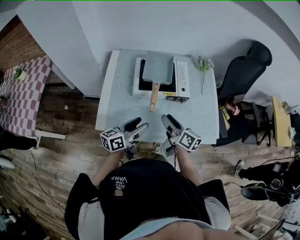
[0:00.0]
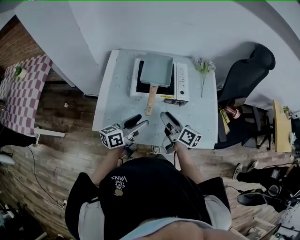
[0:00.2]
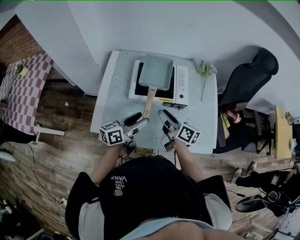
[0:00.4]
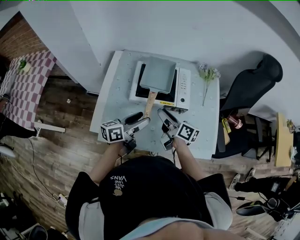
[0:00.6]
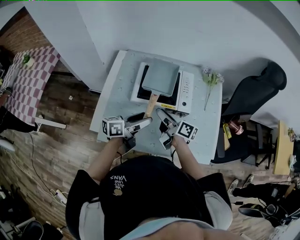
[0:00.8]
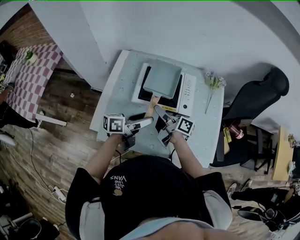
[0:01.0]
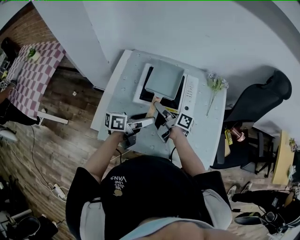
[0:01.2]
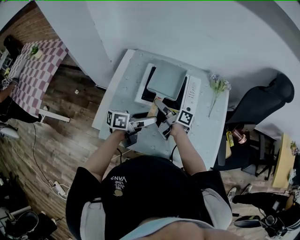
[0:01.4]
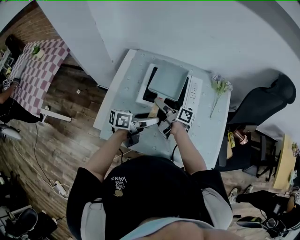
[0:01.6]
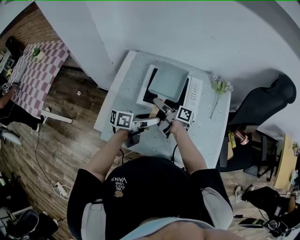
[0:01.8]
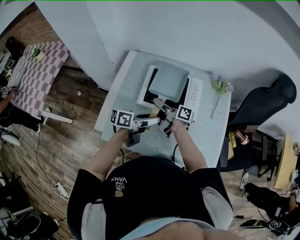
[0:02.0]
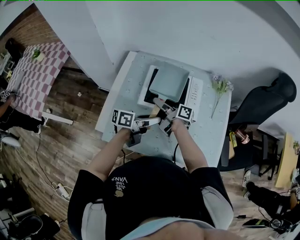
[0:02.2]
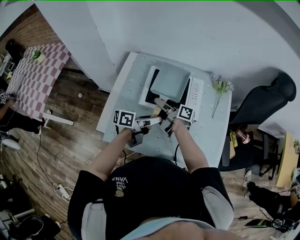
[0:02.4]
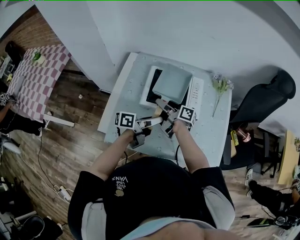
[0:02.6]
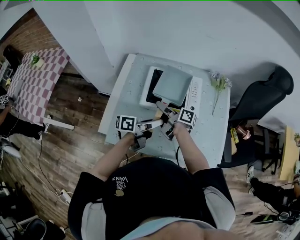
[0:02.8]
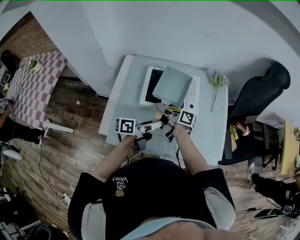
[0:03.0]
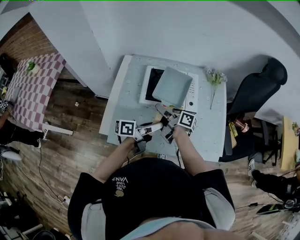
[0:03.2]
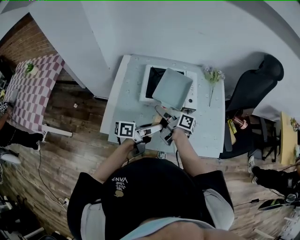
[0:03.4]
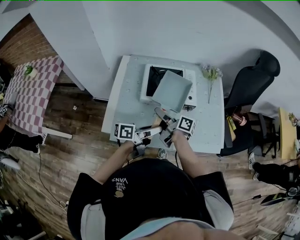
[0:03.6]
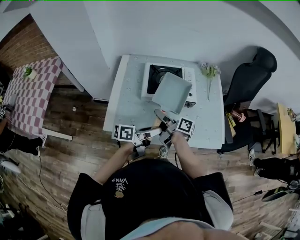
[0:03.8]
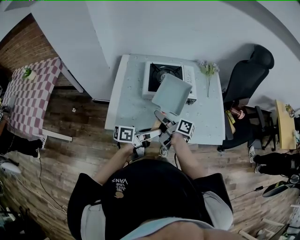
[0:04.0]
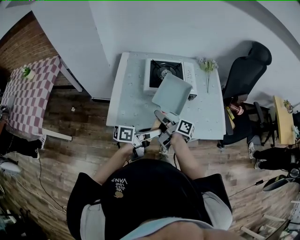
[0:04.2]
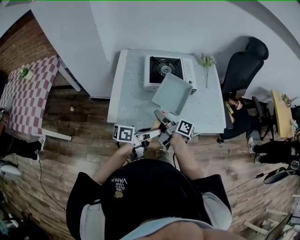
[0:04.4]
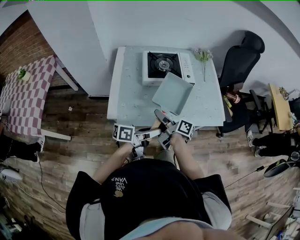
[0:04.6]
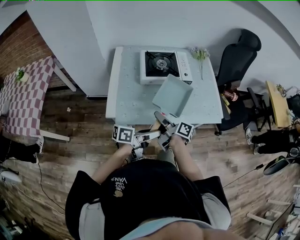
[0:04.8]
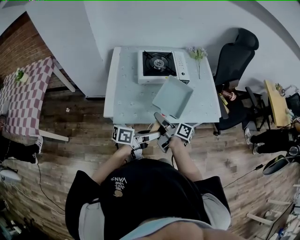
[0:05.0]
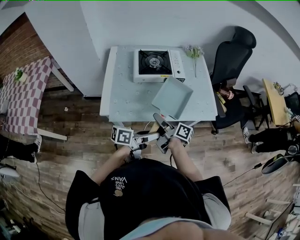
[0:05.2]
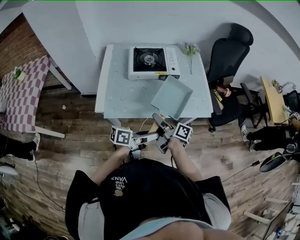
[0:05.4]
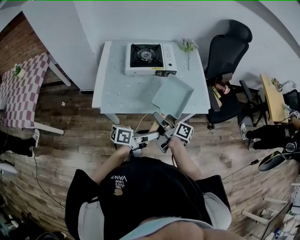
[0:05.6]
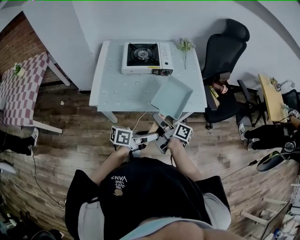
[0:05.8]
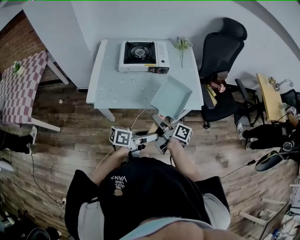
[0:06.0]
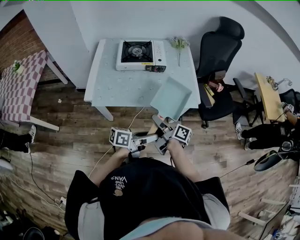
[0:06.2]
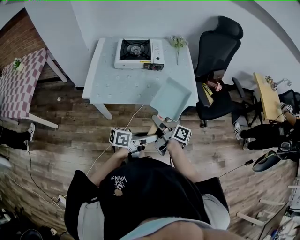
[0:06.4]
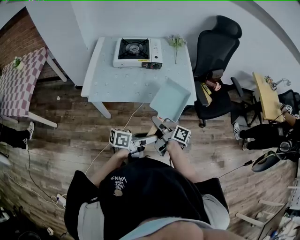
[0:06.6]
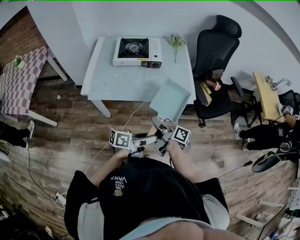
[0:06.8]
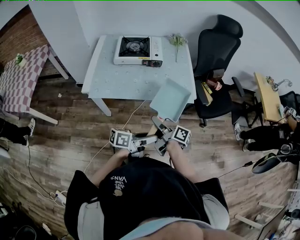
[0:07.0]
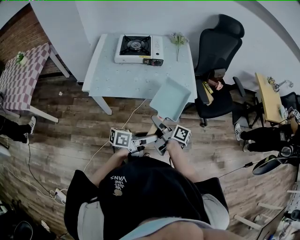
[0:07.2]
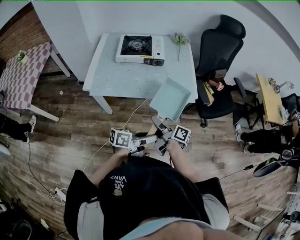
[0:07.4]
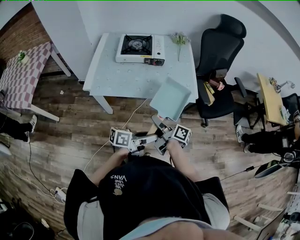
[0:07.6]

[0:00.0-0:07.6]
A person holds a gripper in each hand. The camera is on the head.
0:00.0 to 0:01.6: The left gripper shifts some 10 cm forward and to the right, while the right gripper travels forward and to the left by roughly 15 cm, and rotates approximately 40 degrees.
0:01.6 to 0:03.0: The left gripper closes up.
0:03.0 to 0:04.6: The grippers both shift backward by some 20 cm.
0:04.6 to 0:06.0: Both grippers move to the right and backward, some 20 cm.
0:06.0 to 0:07.6: The two grippers go about 5 cm to the right.

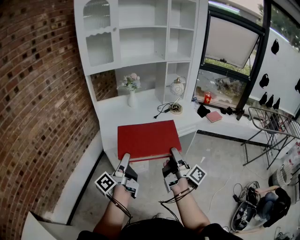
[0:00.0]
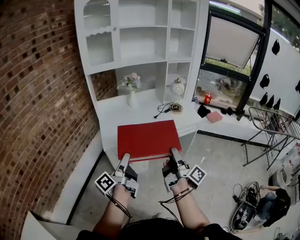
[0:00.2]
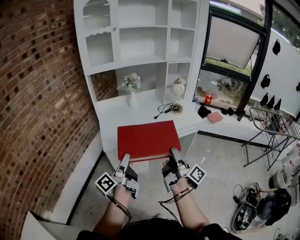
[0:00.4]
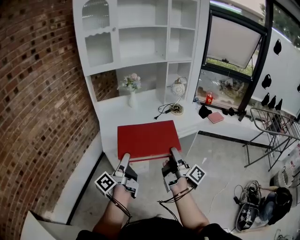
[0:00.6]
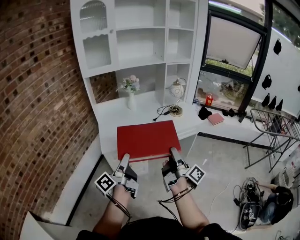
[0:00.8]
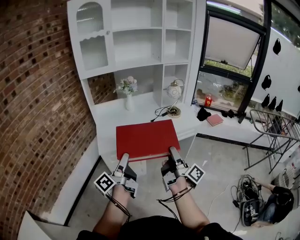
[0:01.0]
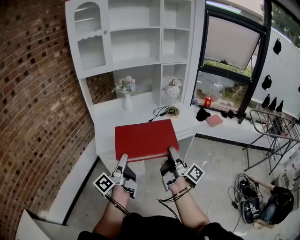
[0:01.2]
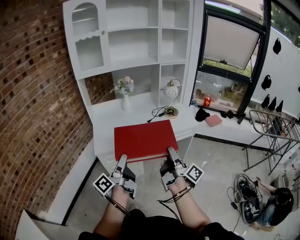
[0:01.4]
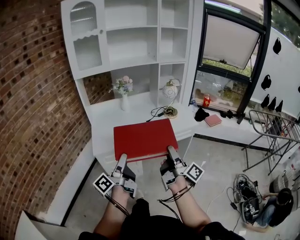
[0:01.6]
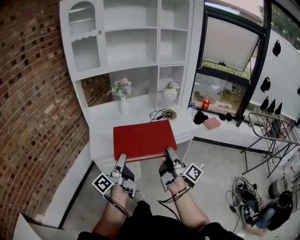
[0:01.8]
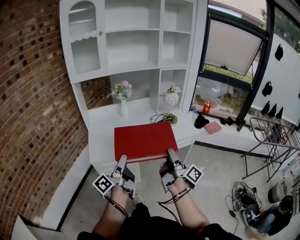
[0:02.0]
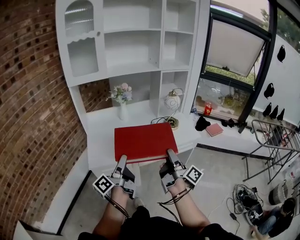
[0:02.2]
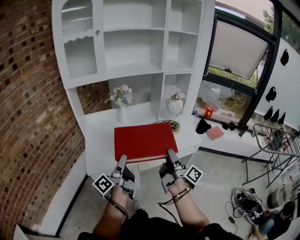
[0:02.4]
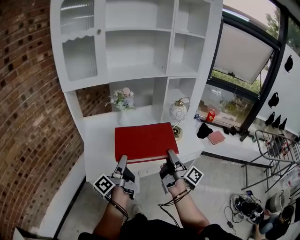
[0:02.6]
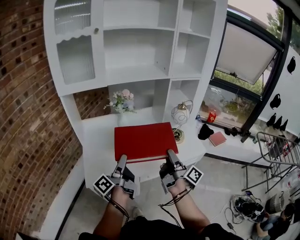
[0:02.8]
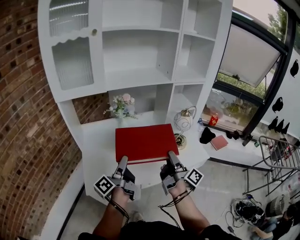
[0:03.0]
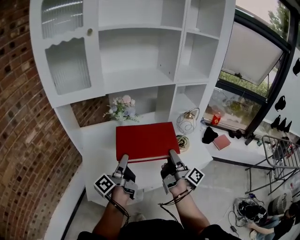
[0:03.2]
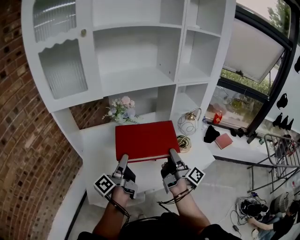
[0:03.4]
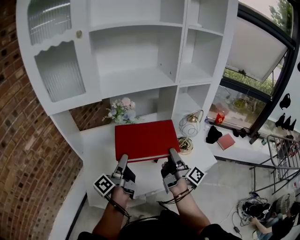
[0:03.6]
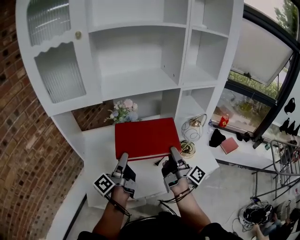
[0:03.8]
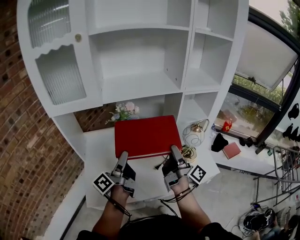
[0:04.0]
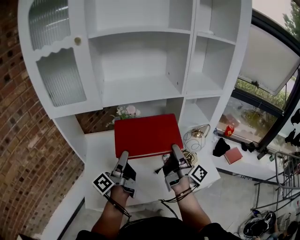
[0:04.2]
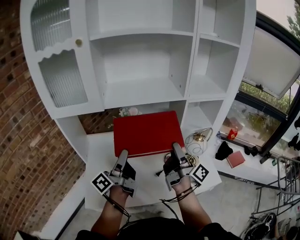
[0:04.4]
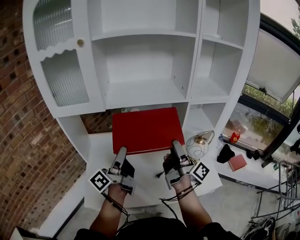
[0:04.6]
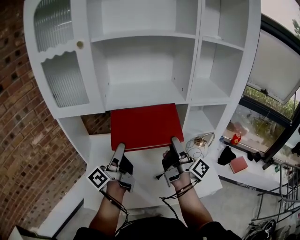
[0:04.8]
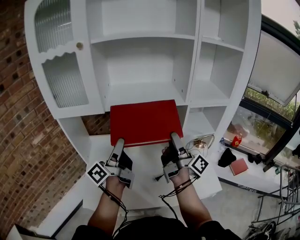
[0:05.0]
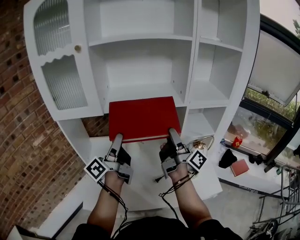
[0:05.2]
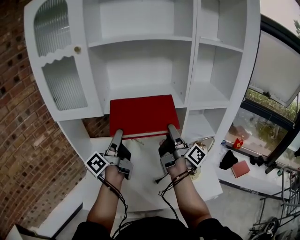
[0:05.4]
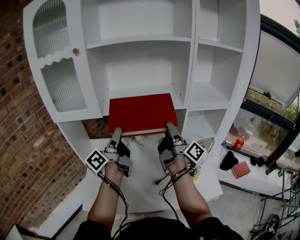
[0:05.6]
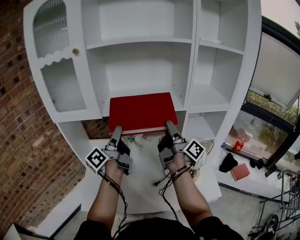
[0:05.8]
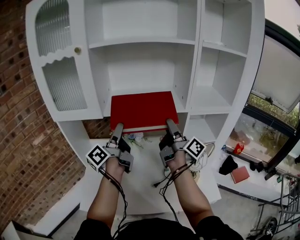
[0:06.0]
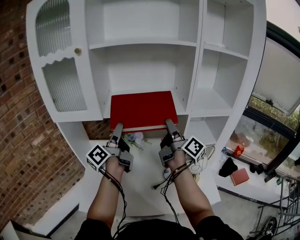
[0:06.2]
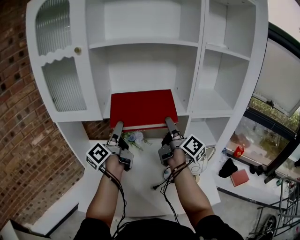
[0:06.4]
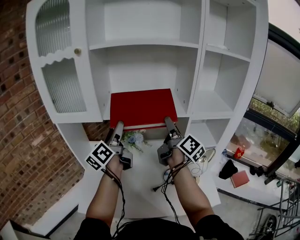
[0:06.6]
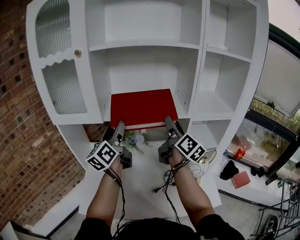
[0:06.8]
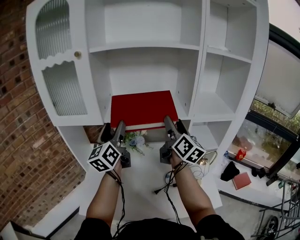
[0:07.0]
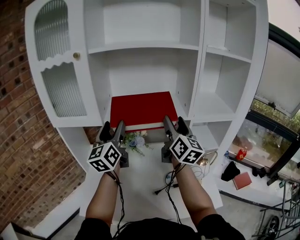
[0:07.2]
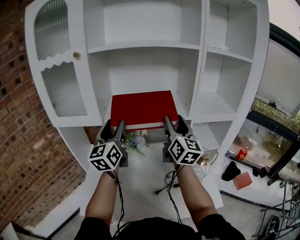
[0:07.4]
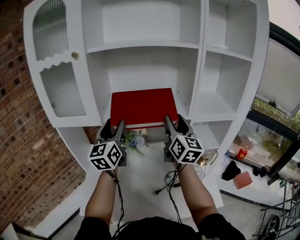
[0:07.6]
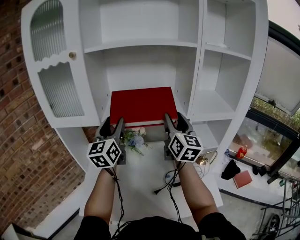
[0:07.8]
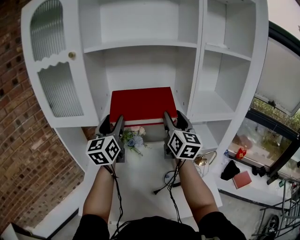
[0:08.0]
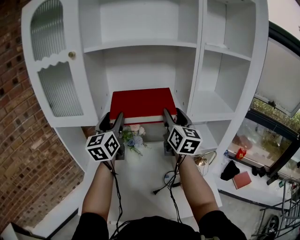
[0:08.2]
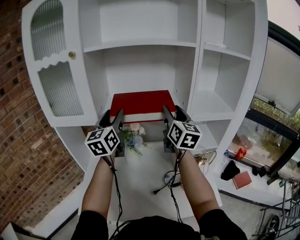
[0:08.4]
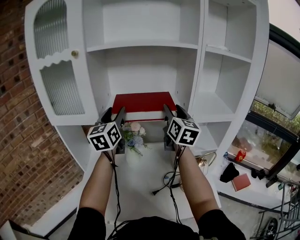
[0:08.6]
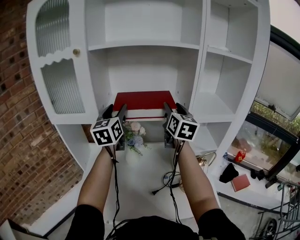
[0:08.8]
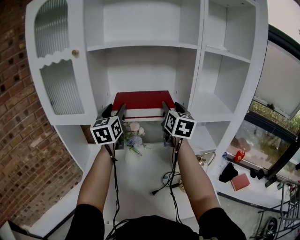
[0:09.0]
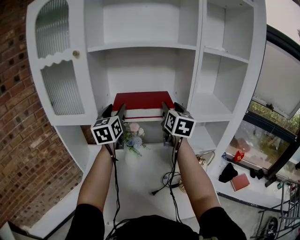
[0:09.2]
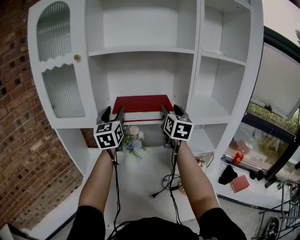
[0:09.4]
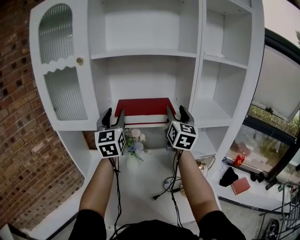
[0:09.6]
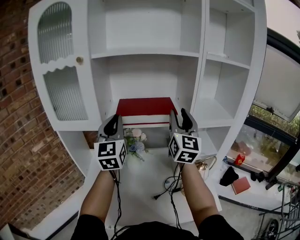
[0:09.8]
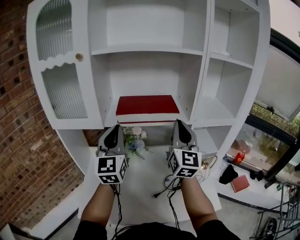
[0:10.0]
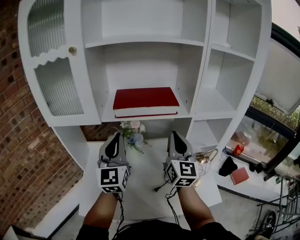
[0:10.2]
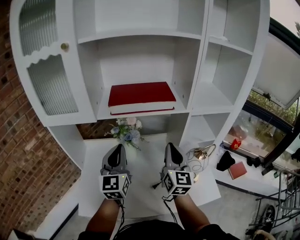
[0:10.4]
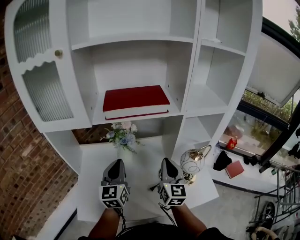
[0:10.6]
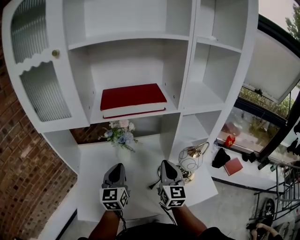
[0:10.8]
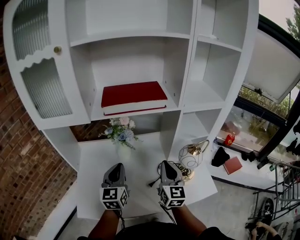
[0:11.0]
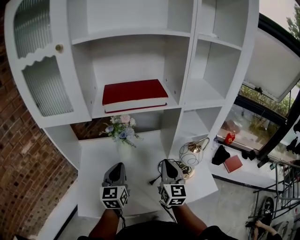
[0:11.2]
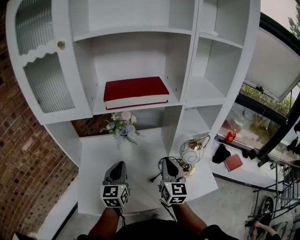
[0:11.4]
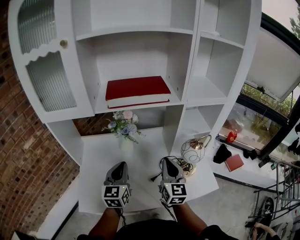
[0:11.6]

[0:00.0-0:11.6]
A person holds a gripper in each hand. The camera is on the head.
0:00.0 to 0:01.4: The left gripper goes approximately 10 cm to the right, while the right gripper is displaced to the right and forward by some 10 cm.
0:01.4 to 0:02.8: Both grippers travel together forward, approximately 30 cm.
0:02.8 to 0:04.4: The two grippers go roughly 20 cm forward.
0:04.4 to 0:05.8: The grippers both shift forward and upward by approximately 15 cm.
0:05.8 to 0:07.2: The left gripper changes place by approximately 5 cm, and twists about 50 degrees clockwise, seen from behind. Meanwhile the right gripper shifts approximately 5 cm upward, and rotates around the line of its fingers by some 60 degrees, counterclockwise from behind.
0:07.2 to 0:08.8: Both grippers travel together forward, about 5 cm.
0:08.8 to 0:10.2: The left gripper is displaced backward by approximately 10 cm, and closes; the right gripper travels backward and downward by some 15 cm, and closes its fingers.
0:10.2 to 0:11.6: The right gripper goes about 15 cm downward and backward. Meanwhile the left gripper is displaced downward by roughly 20 cm, and swivels roughly 30 degrees.

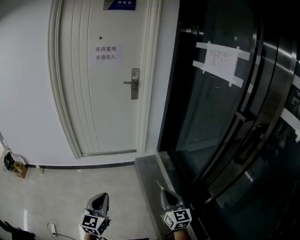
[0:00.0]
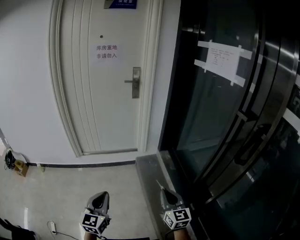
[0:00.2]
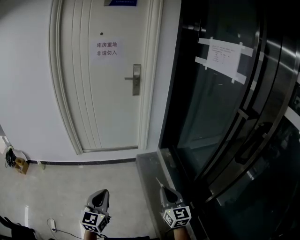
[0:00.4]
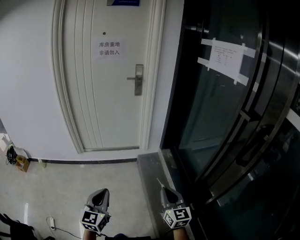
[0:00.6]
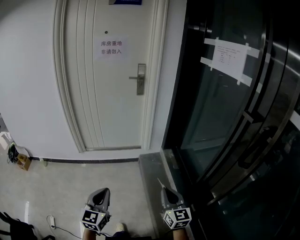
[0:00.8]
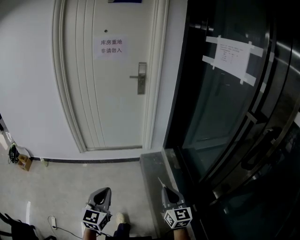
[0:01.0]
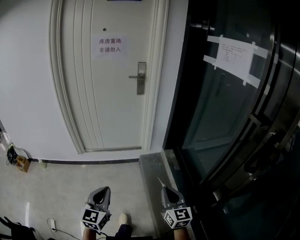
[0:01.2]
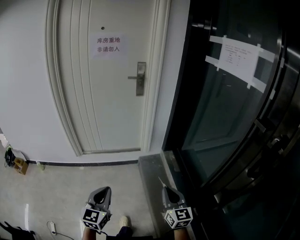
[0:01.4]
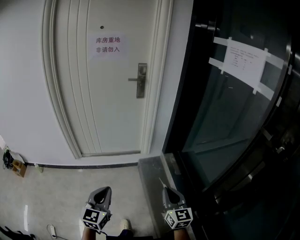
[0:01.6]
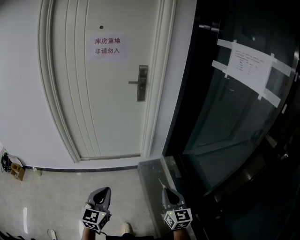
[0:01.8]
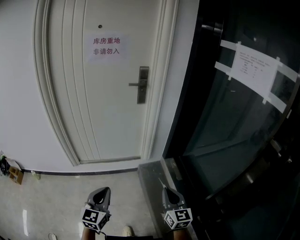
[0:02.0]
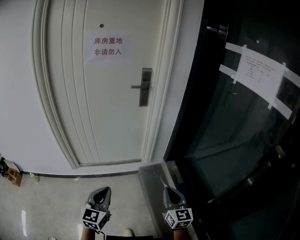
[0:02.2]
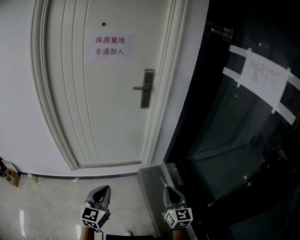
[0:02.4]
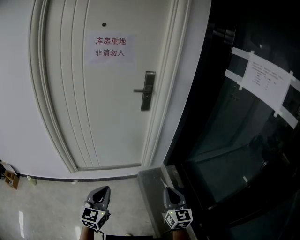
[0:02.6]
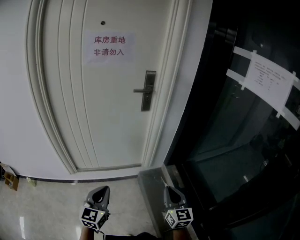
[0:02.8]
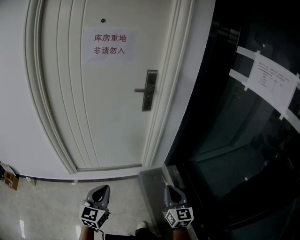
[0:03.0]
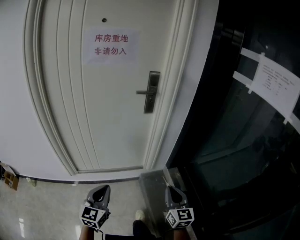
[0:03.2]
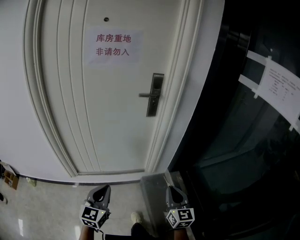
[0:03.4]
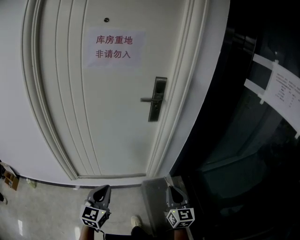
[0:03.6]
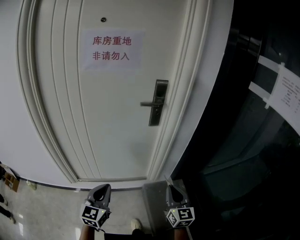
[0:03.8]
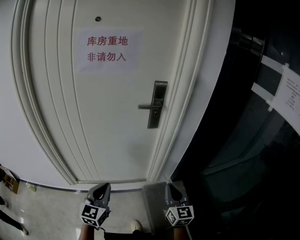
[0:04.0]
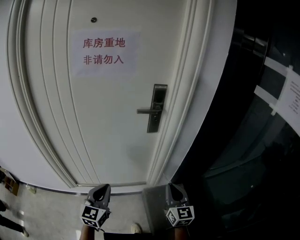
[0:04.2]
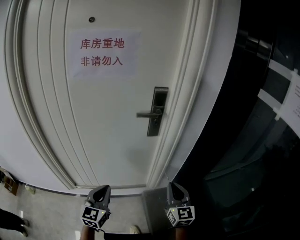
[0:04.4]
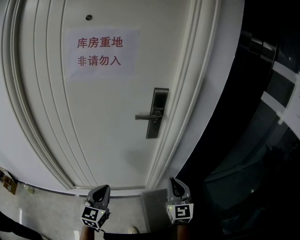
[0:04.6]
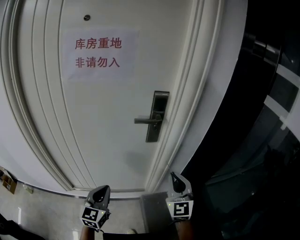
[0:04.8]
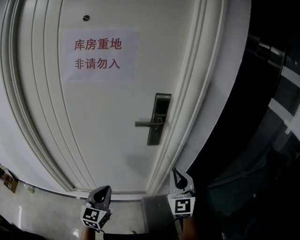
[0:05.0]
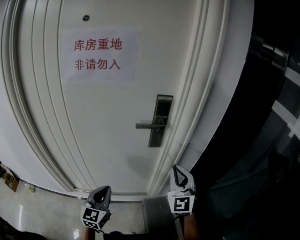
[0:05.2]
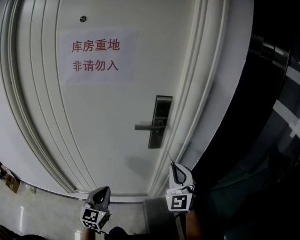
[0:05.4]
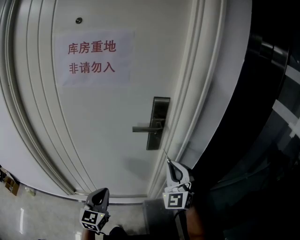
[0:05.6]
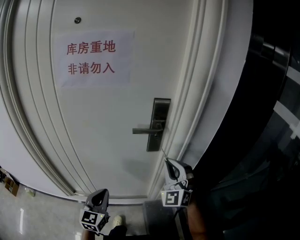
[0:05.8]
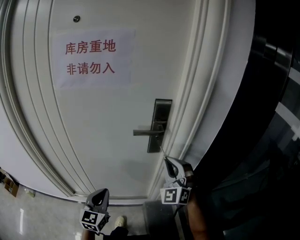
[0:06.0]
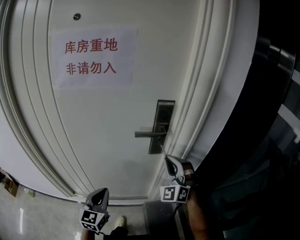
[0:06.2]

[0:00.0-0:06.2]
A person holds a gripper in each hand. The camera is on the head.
0:00.0 to 0:01.6: Both grippers move forward, approximately 15 cm.
0:01.6 to 0:03.2: Both grippers move forward and to the left, about 25 cm.
0:03.2 to 0:04.6: Both grippers travel together forward, some 25 cm.
0:04.6 to 0:06.2: The right gripper moves forward, some 20 cm, and twists some 50 degrees counterclockwise, seen from behind, while the left gripper moves forward, roughly 10 cm.
